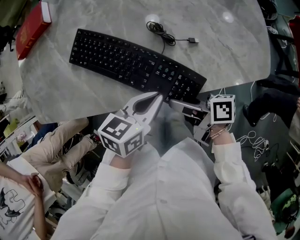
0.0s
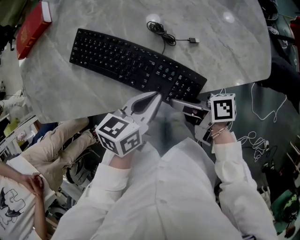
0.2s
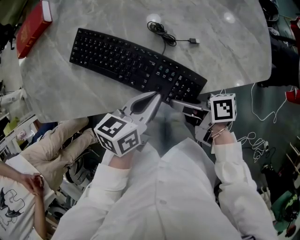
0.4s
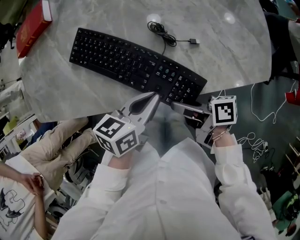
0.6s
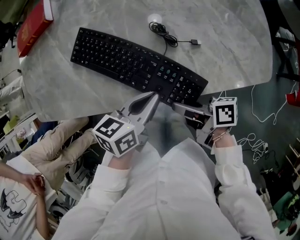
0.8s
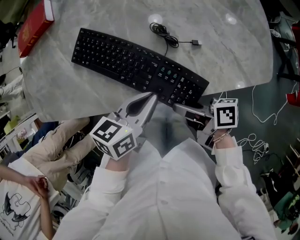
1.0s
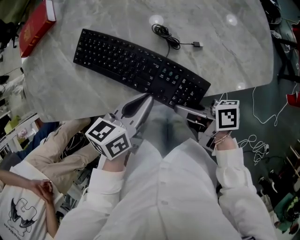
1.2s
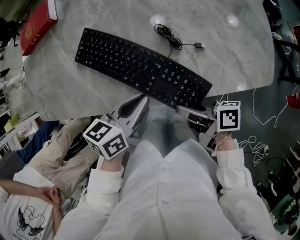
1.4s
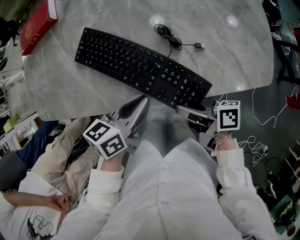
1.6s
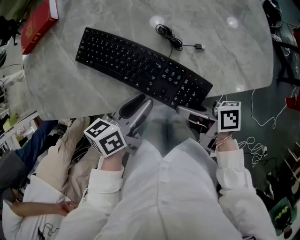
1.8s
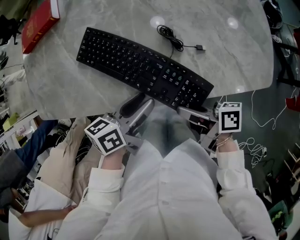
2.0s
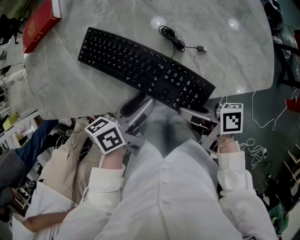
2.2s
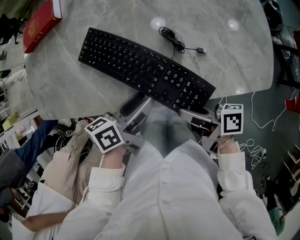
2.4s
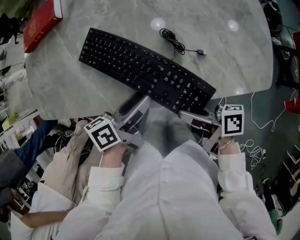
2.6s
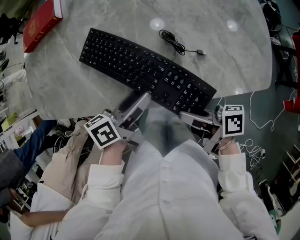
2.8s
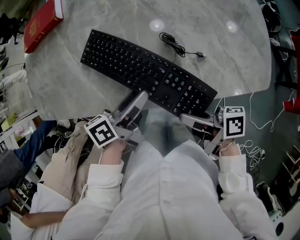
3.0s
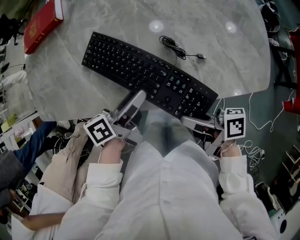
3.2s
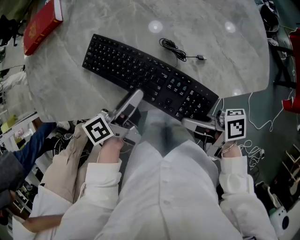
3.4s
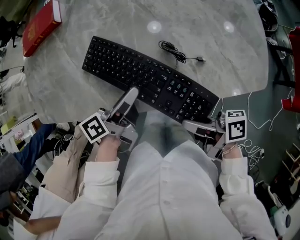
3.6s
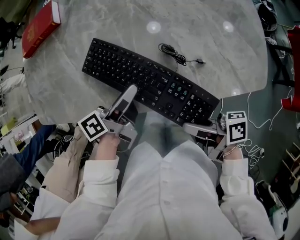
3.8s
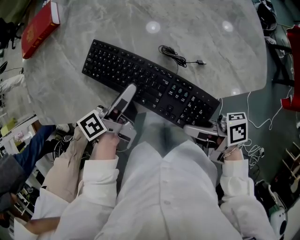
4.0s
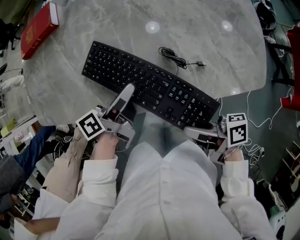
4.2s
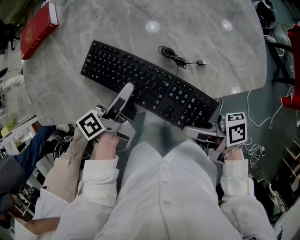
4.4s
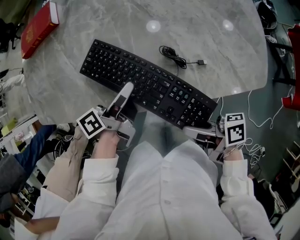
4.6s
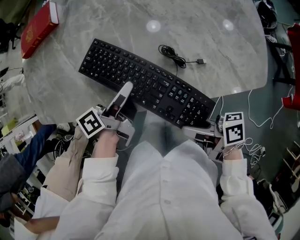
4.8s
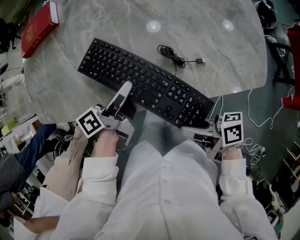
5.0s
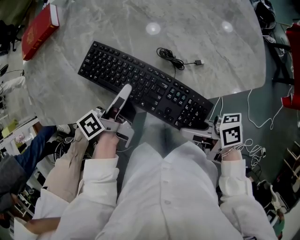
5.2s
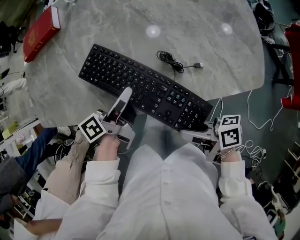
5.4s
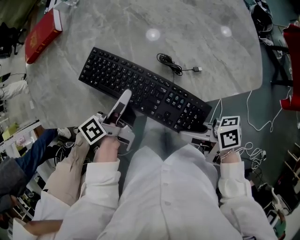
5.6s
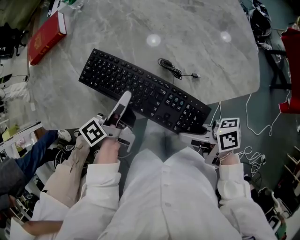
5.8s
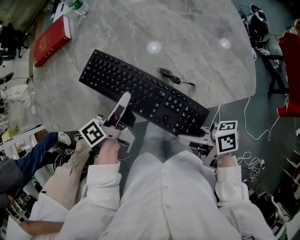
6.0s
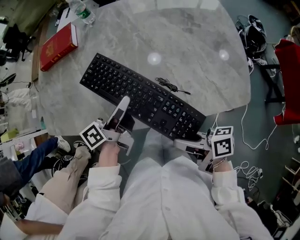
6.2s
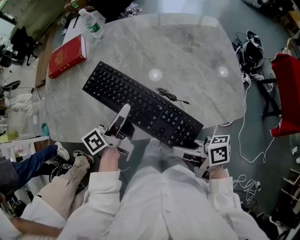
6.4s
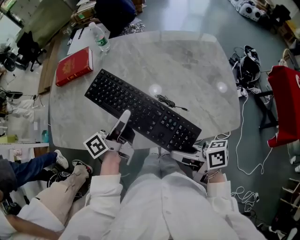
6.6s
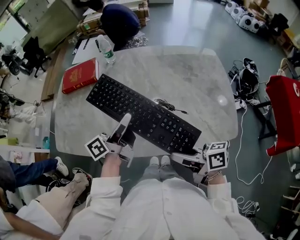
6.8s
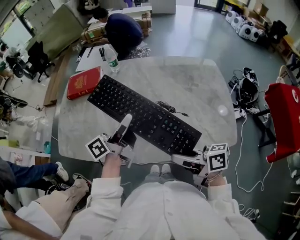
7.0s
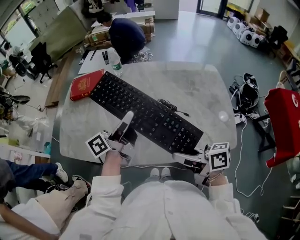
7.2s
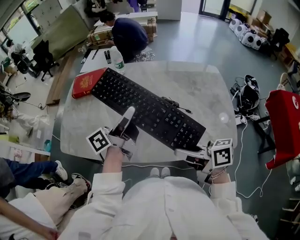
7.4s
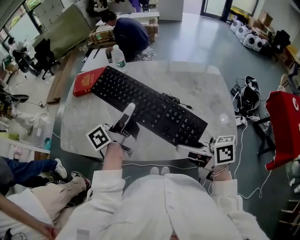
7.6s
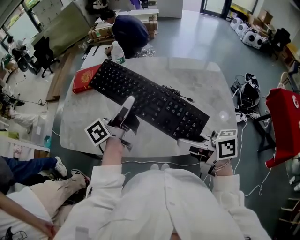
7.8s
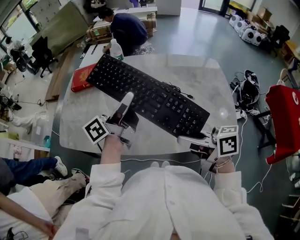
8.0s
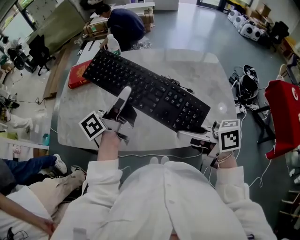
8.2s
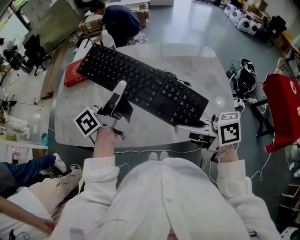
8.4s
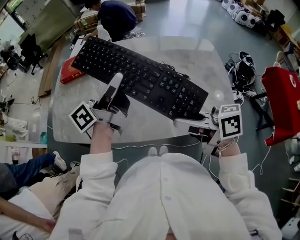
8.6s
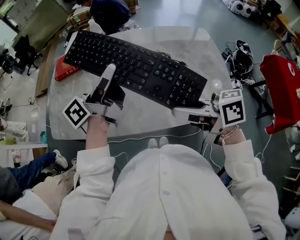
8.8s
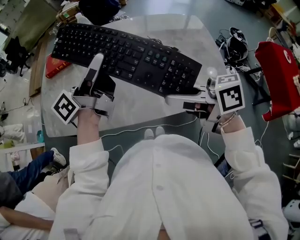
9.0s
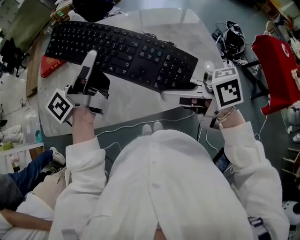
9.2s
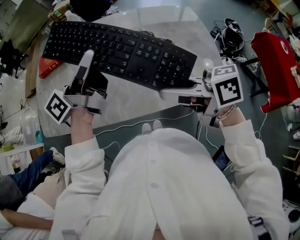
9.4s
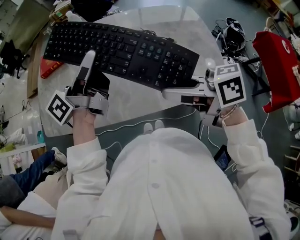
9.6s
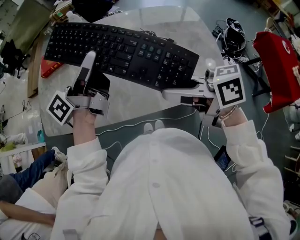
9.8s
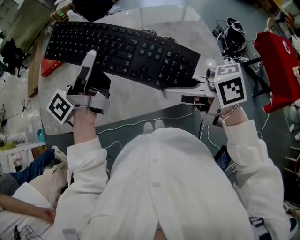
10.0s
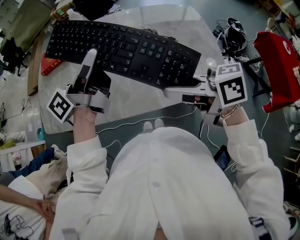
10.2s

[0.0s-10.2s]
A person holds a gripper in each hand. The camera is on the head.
0.0s to 1.4s: The left gripper is displaced to the left by some 5 cm, while the right gripper closes its fingers.
1.4s to 3.0s: The left gripper rotates about 30 degrees, and opens its fingers.
3.0s to 4.4s: The left gripper moves forward, some 5 cm.
4.4s to 5.8s: The left gripper closes its fingers, while the right gripper changes place by roughly 5 cm.
5.8s to 7.2s: The right gripper travels downward and back again, roughly 10 cm each way, and swivels roughly 20 degrees. The left gripper moves up and down over some 10 cm, changing direction 2 times, and swivels roughly 30 degrees.
7.2s to 8.8s: The grippers make only small movements.
8.8s to 10.2s: Both grippers stay put.

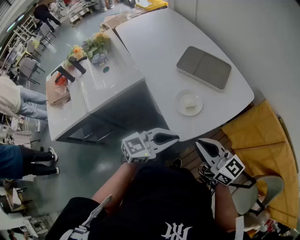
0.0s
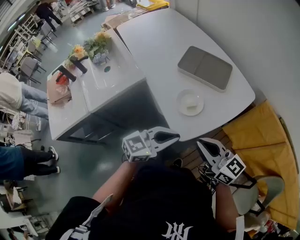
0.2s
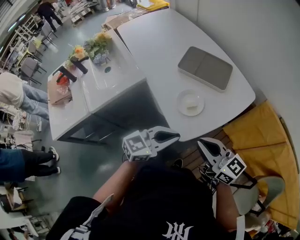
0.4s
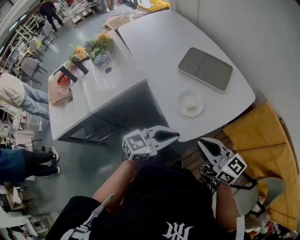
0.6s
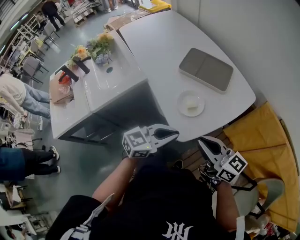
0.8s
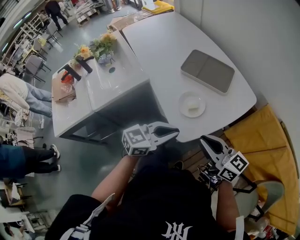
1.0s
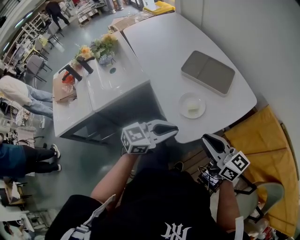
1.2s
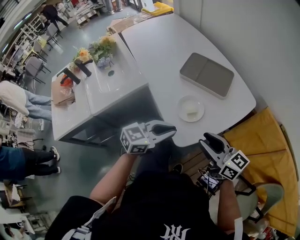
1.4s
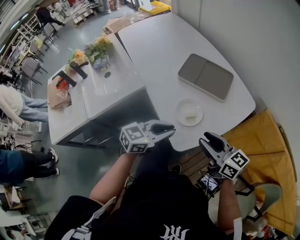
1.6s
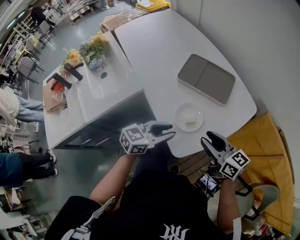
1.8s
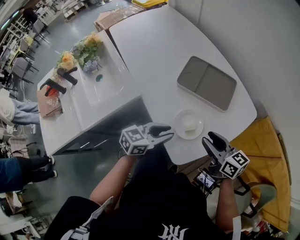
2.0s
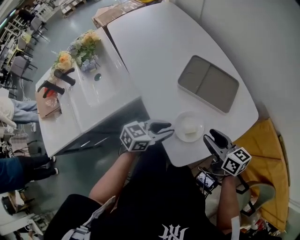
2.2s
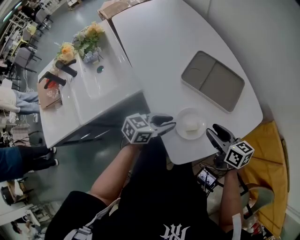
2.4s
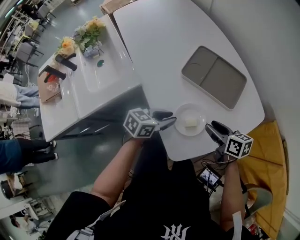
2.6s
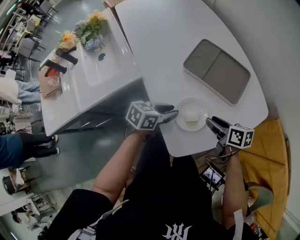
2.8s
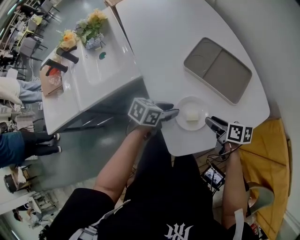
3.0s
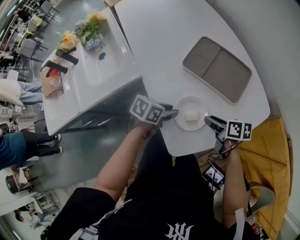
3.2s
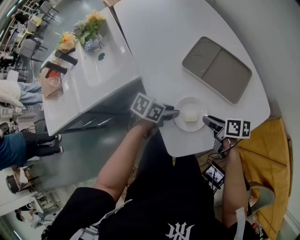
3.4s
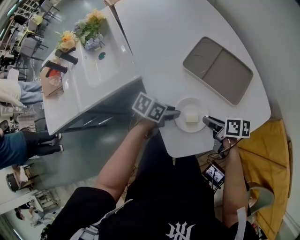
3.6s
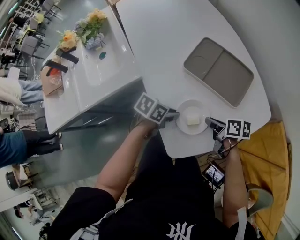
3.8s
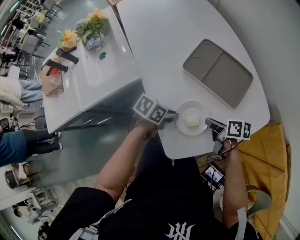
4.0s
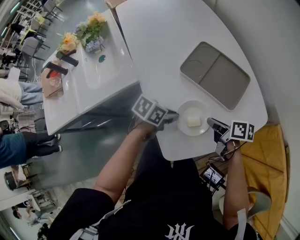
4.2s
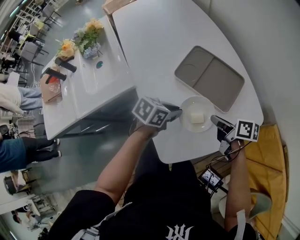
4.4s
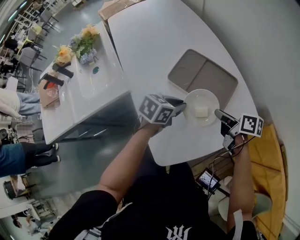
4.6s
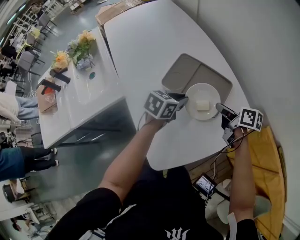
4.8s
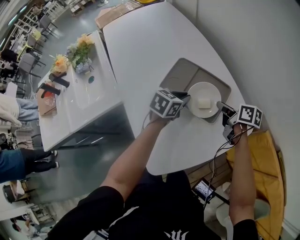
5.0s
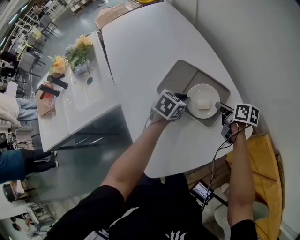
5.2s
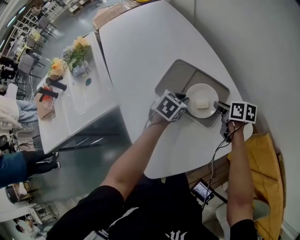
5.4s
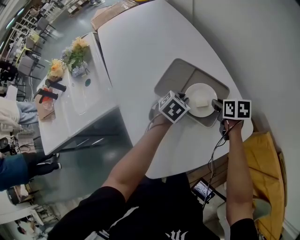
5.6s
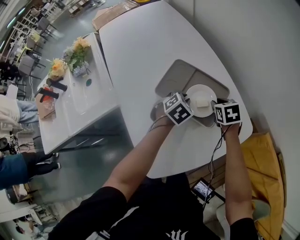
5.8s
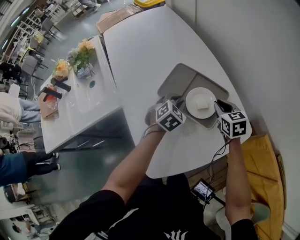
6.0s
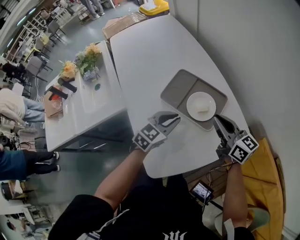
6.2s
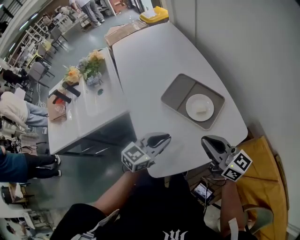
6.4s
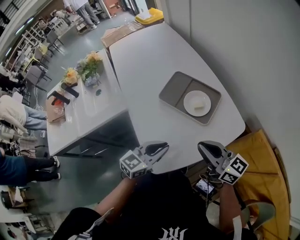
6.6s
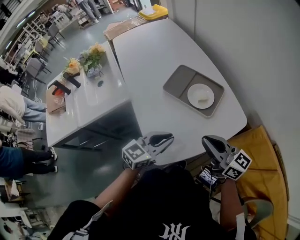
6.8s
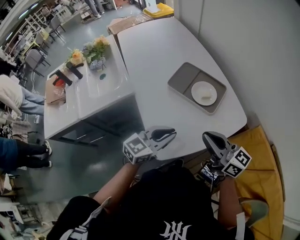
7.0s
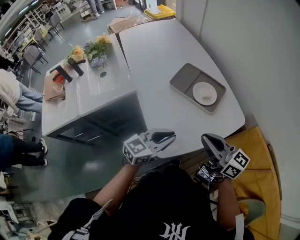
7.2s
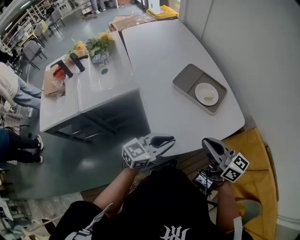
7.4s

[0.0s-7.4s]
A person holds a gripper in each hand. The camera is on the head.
0.0s to 1.4s: The left gripper shifts by roughly 5 cm, while the right gripper opens up.
1.4s to 3.0s: Both grippers move forward and downward, roughly 25 cm. The left gripper rotates about 40 degrees, and opens its fingers, while the right gripper tips its fingers downward by roughly 30 degrees.
3.0s to 4.4s: The left gripper moves some 10 cm, and closes up. The right gripper changes place by some 10 cm, and closes.
4.4s to 6.0s: The right gripper shifts by about 20 cm, and rotates around the line of its fingers by some 50 degrees, counterclockwise from behind. Meanwhile the left gripper ends up roughly 15 cm from where it was, and changes its angle by about 50 degrees.
6.0s to 7.4s: The left gripper moves backward, approximately 35 cm, and angles its fingers upward, by approximately 40 degrees. The right gripper moves backward, upward and to the left, approximately 40 cm, and tips its fingers upward by about 40 degrees.

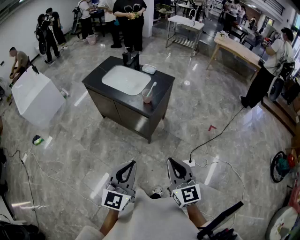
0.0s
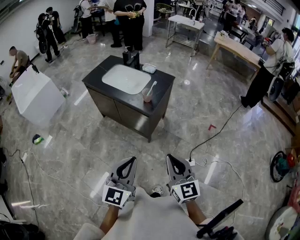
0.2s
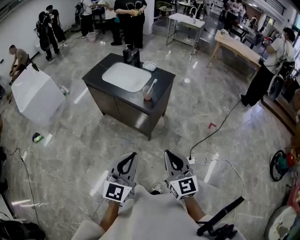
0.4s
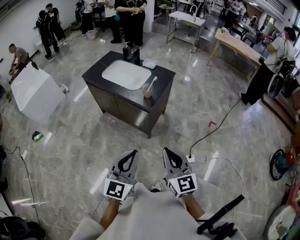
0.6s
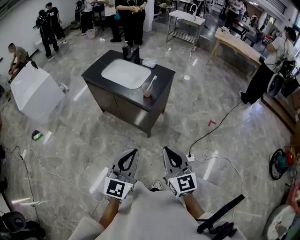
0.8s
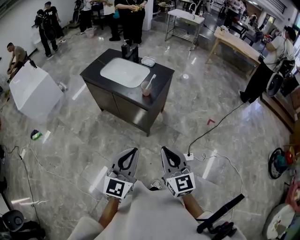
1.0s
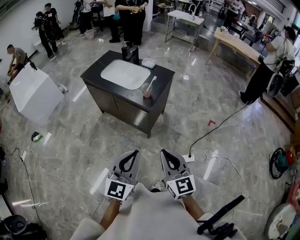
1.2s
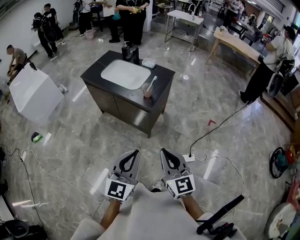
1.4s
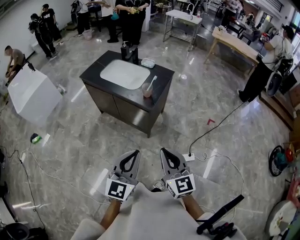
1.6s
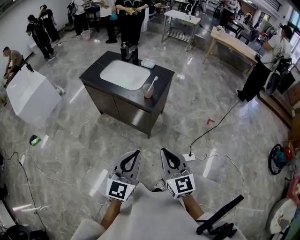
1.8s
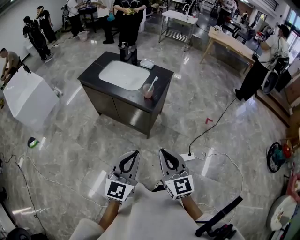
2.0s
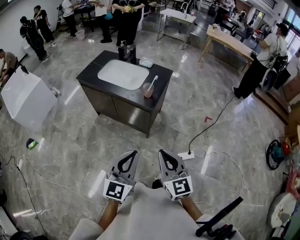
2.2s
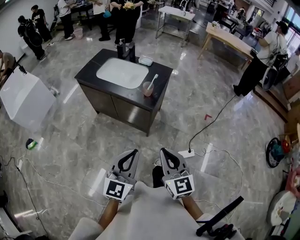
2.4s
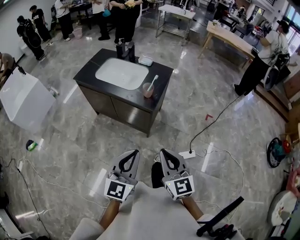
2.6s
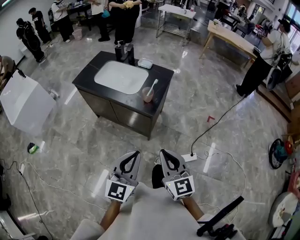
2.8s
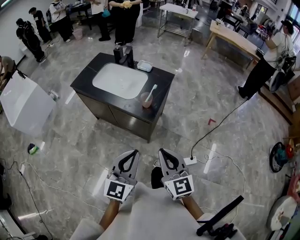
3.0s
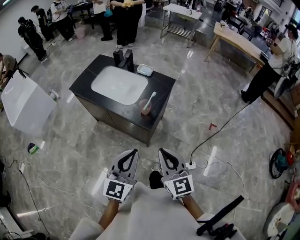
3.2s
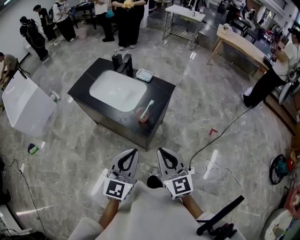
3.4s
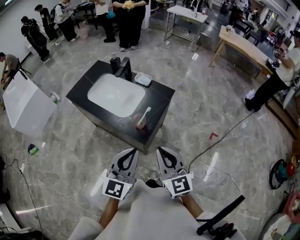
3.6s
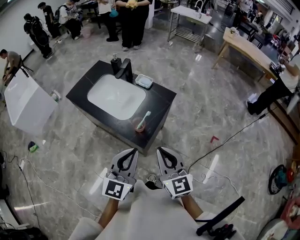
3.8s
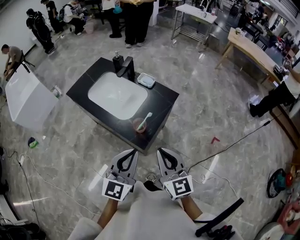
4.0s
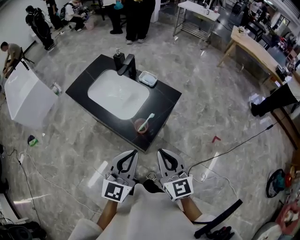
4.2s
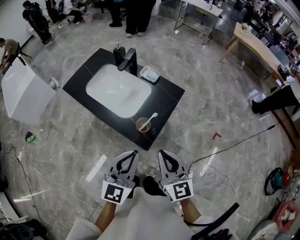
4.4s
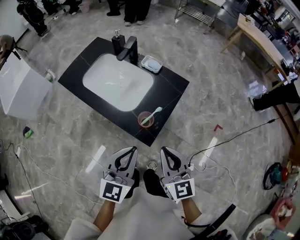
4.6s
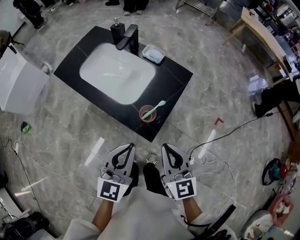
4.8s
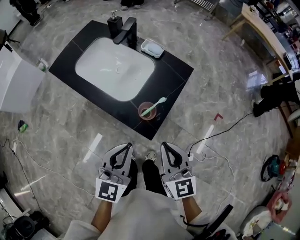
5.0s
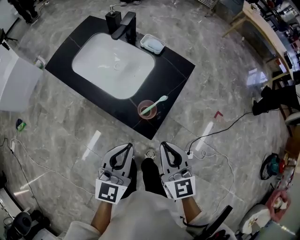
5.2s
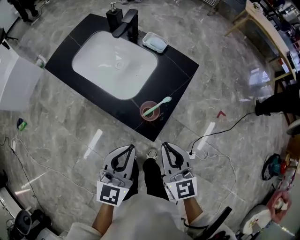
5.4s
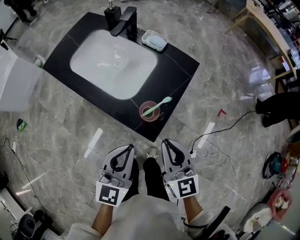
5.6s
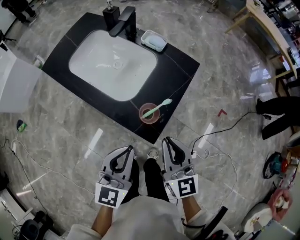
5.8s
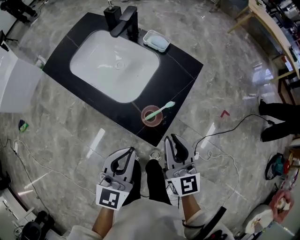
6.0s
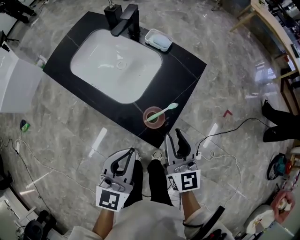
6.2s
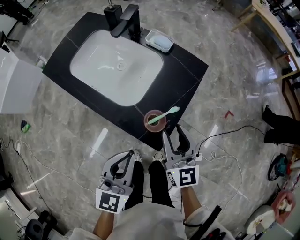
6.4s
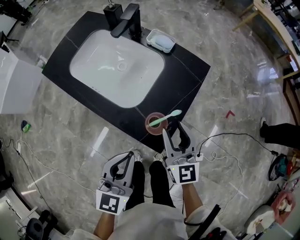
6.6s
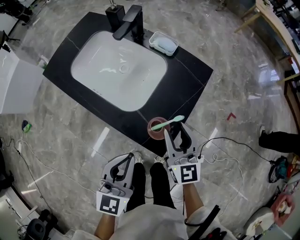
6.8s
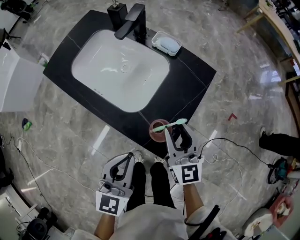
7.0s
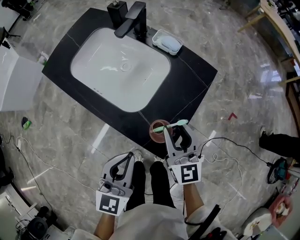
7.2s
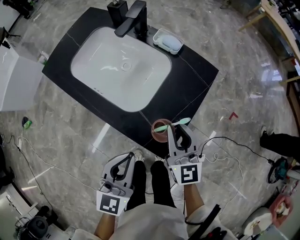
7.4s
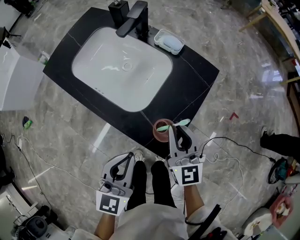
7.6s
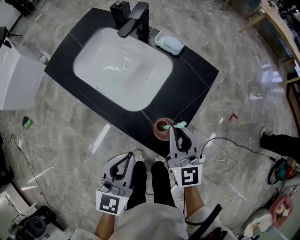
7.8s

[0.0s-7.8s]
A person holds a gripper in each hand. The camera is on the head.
0.0s to 1.6s: There are only small adjustments of the grippers.
1.6s to 3.2s: Both grippers travel together forward, roughly 15 cm.
3.2s to 4.6s: The two grippers go some 15 cm forward.
4.6s to 6.2s: The left gripper goes some 10 cm downward. Meanwhile the right gripper shifts approximately 10 cm downward and forward, and opens its fingers.
6.2s to 7.8s: The right gripper shifts roughly 5 cm forward.
